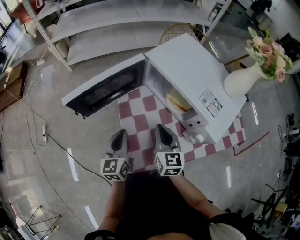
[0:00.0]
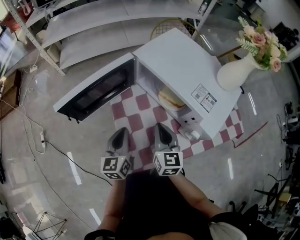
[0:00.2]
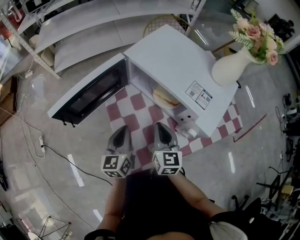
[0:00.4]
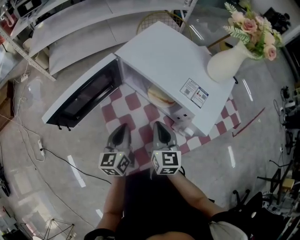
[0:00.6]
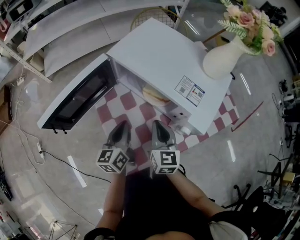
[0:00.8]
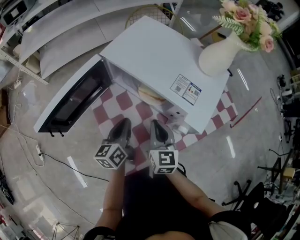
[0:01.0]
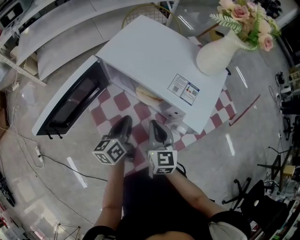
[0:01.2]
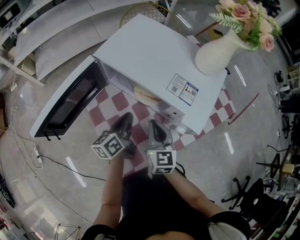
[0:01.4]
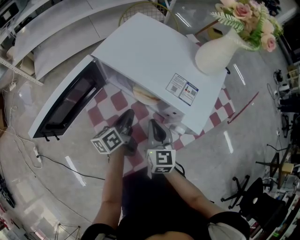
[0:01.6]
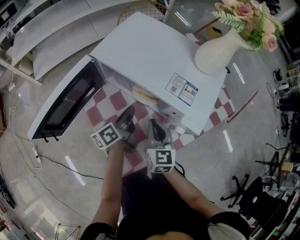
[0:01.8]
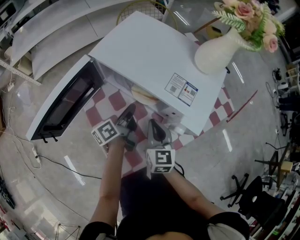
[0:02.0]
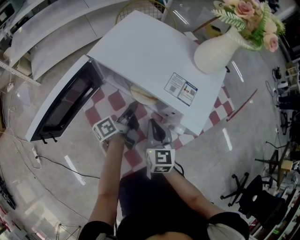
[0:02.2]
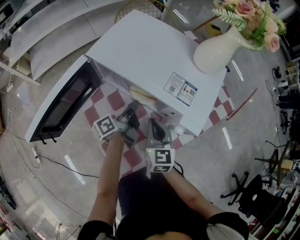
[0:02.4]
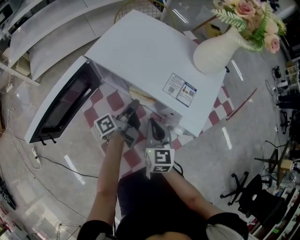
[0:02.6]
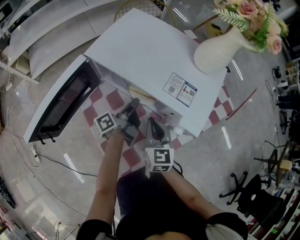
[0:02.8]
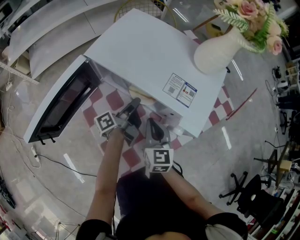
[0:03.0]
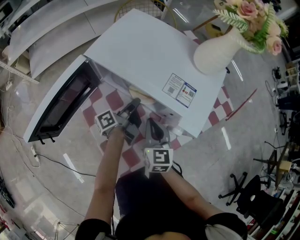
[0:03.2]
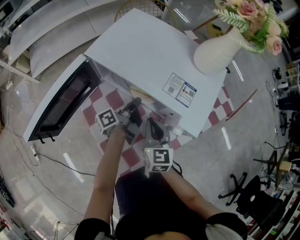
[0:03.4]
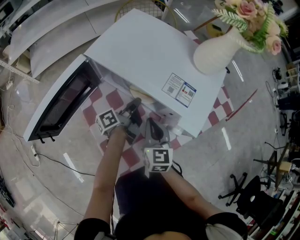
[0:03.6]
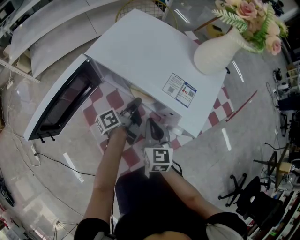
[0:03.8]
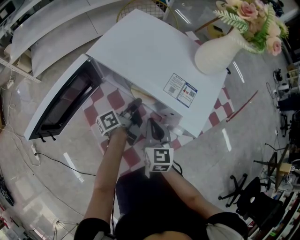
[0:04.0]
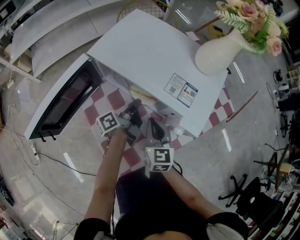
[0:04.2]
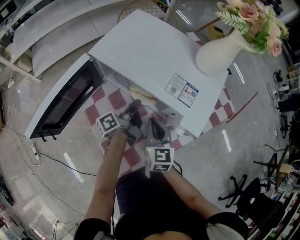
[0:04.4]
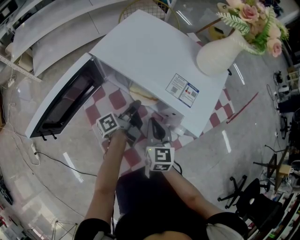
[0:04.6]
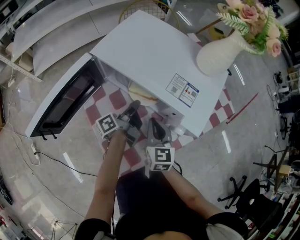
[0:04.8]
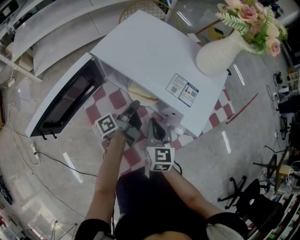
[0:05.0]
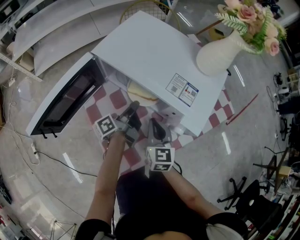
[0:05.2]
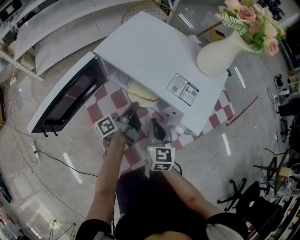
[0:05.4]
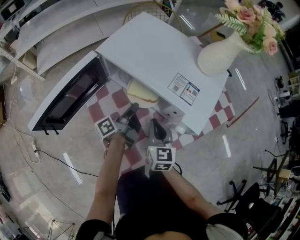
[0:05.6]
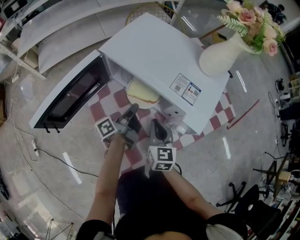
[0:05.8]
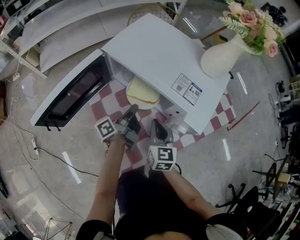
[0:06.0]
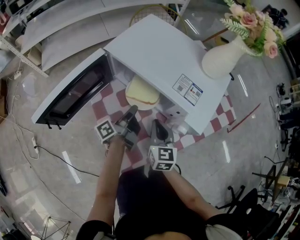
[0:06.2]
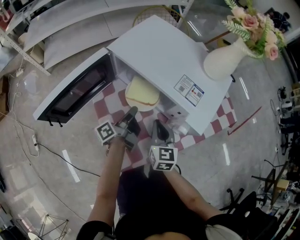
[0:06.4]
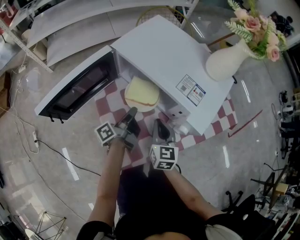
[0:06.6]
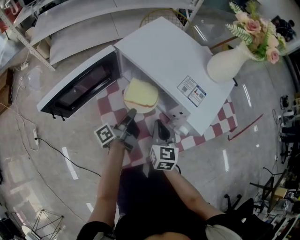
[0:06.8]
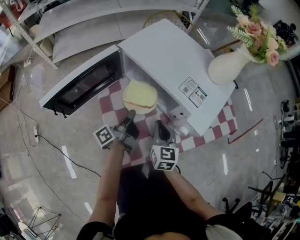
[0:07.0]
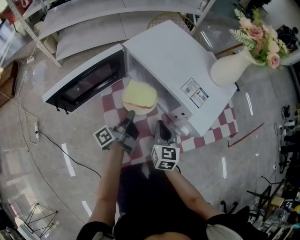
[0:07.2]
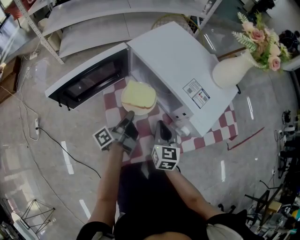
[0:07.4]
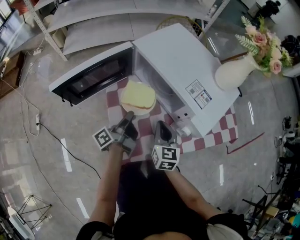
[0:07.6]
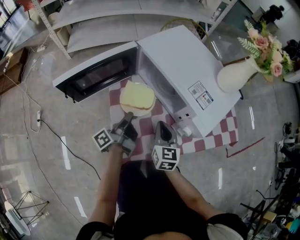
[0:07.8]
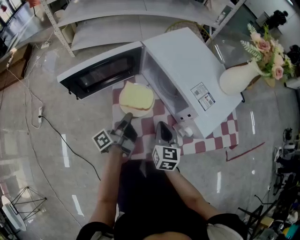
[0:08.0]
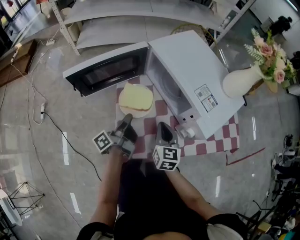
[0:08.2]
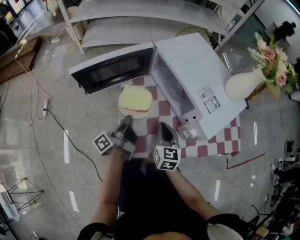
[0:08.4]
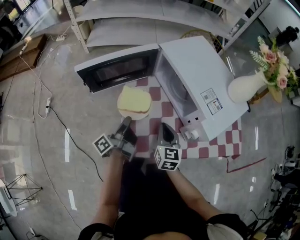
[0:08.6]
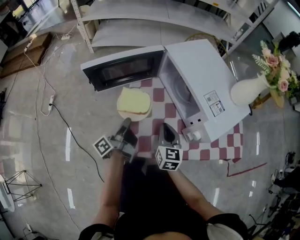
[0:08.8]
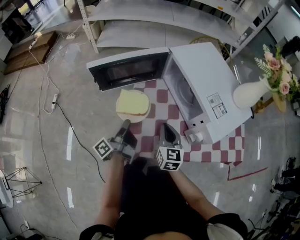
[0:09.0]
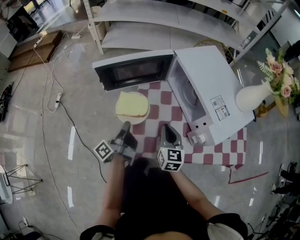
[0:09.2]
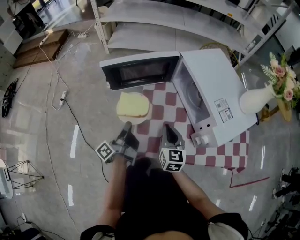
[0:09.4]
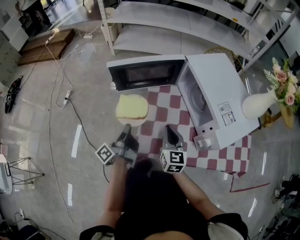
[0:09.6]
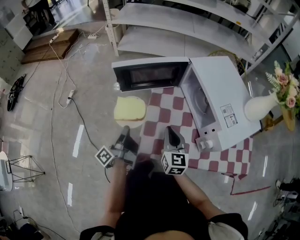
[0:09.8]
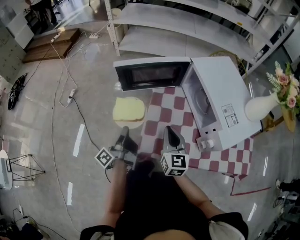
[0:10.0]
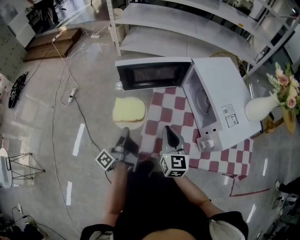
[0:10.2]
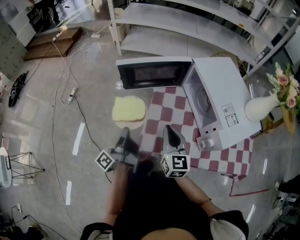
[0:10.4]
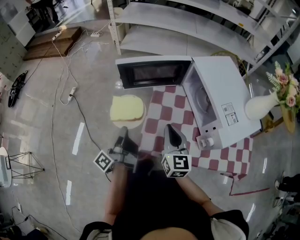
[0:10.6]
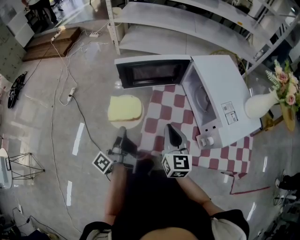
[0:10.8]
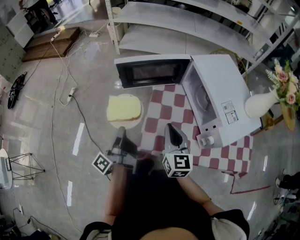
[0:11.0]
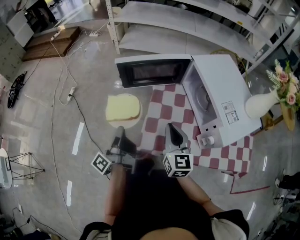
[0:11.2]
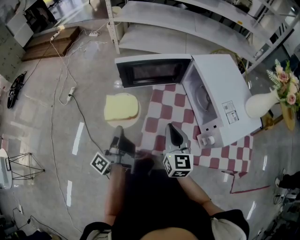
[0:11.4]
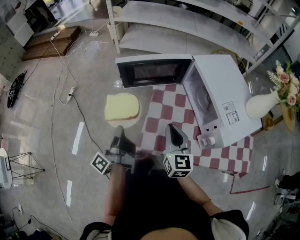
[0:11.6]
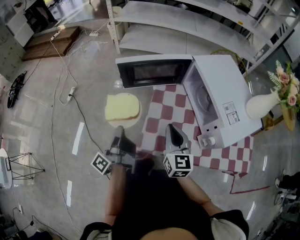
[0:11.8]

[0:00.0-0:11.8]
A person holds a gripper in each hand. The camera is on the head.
0:00.0 to 0:01.4: The left gripper heads to the right and forward, covering some 15 cm, and turns by some 40 degrees. Meanwhile the right gripper shifts some 10 cm to the right.
0:01.4 to 0:03.0: The left gripper is displaced forward by roughly 5 cm, twists about 40 degrees counterclockwise, seen from behind, and opens up.
0:03.0 to 0:06.0: The grippers make only small movements.
0:06.0 to 0:07.4: The left gripper heads backward and to the left, covering approximately 10 cm.
0:07.4 to 0:08.8: The left gripper heads to the left and backward, covering roughly 15 cm, and changes its angle by about 20 degrees, while the right gripper moves to the left, about 5 cm.
0:08.8 to 0:10.4: The right gripper goes about 10 cm to the left and upward; the left gripper shifts some 15 cm to the left, backward and upward, and rotates about 20 degrees.
0:10.4 to 0:11.8: There are only small adjustments of the grippers.

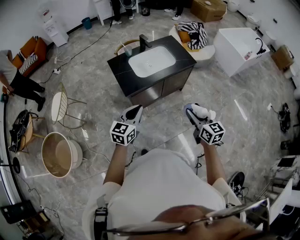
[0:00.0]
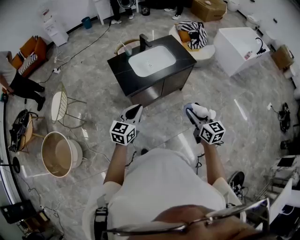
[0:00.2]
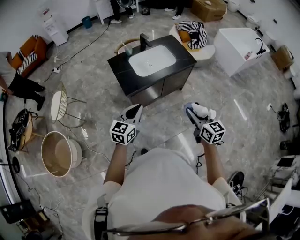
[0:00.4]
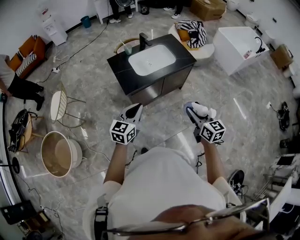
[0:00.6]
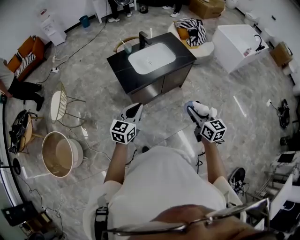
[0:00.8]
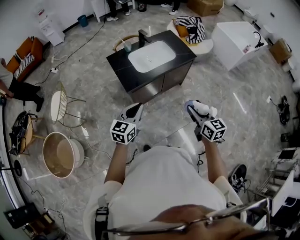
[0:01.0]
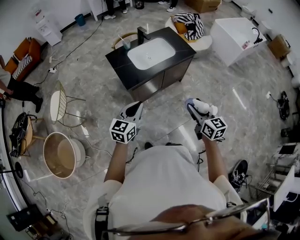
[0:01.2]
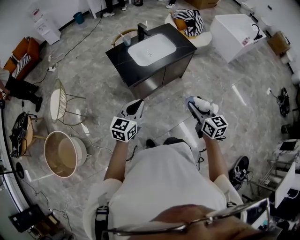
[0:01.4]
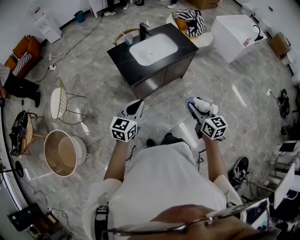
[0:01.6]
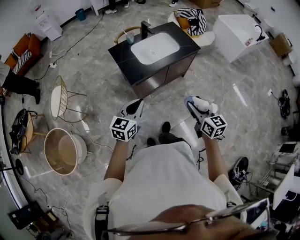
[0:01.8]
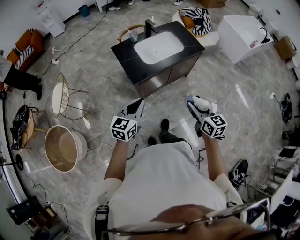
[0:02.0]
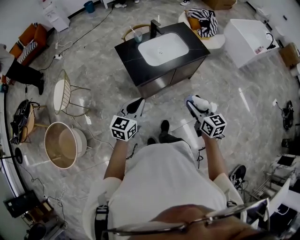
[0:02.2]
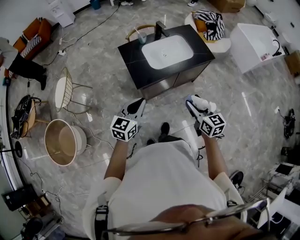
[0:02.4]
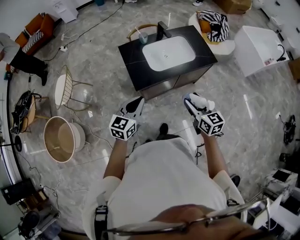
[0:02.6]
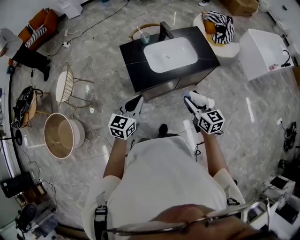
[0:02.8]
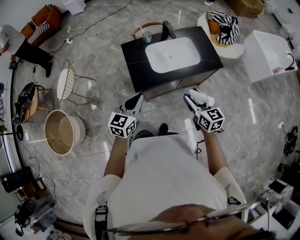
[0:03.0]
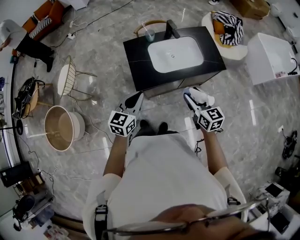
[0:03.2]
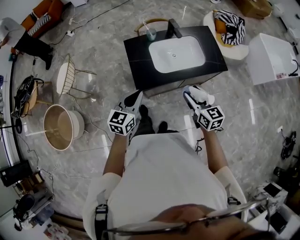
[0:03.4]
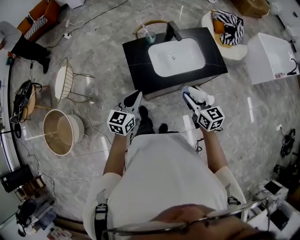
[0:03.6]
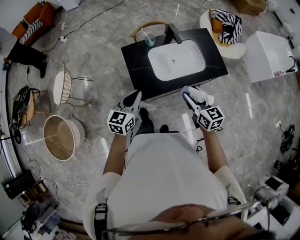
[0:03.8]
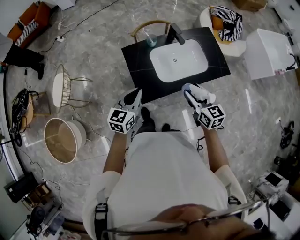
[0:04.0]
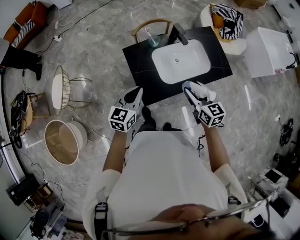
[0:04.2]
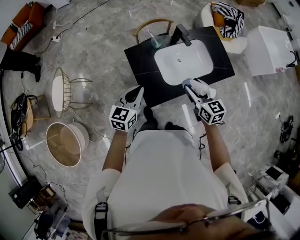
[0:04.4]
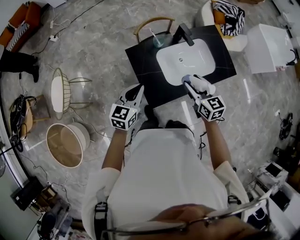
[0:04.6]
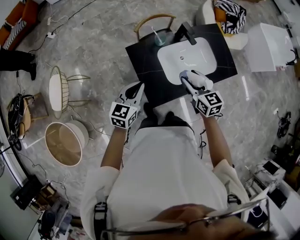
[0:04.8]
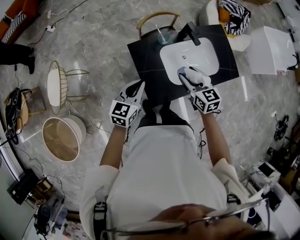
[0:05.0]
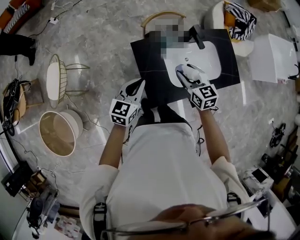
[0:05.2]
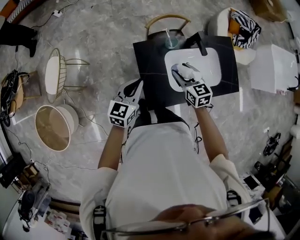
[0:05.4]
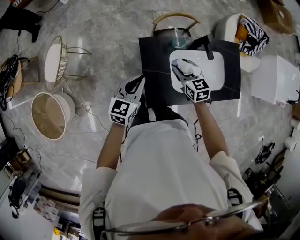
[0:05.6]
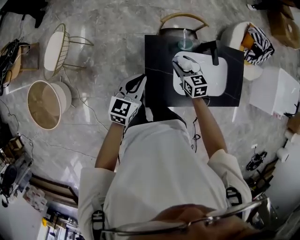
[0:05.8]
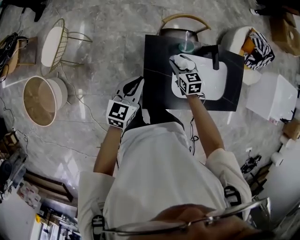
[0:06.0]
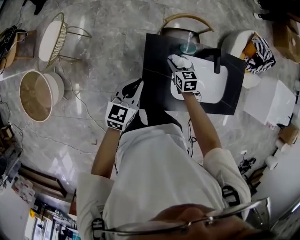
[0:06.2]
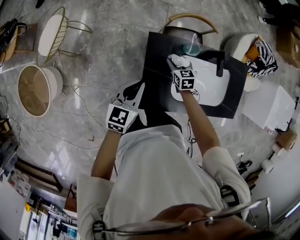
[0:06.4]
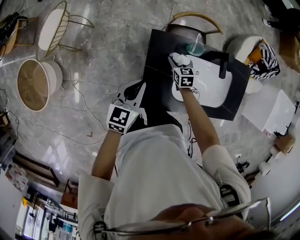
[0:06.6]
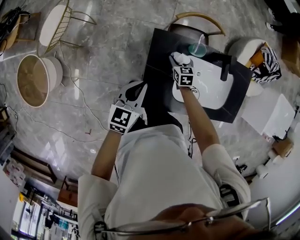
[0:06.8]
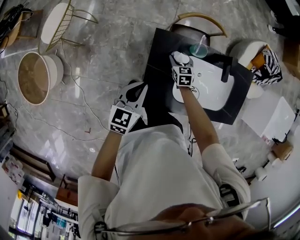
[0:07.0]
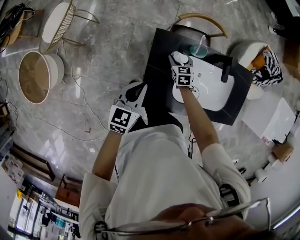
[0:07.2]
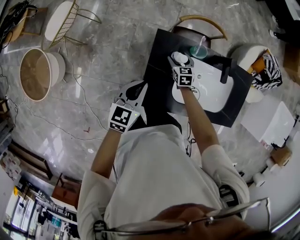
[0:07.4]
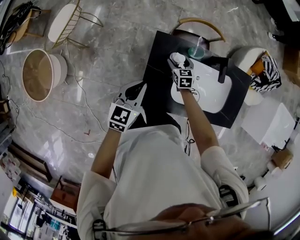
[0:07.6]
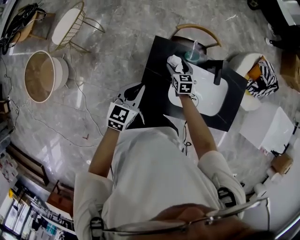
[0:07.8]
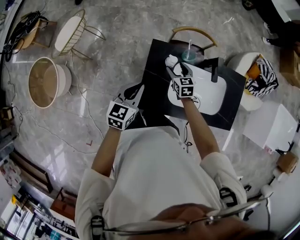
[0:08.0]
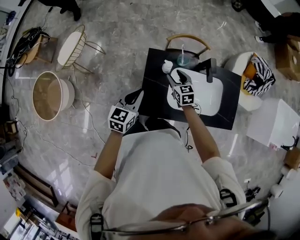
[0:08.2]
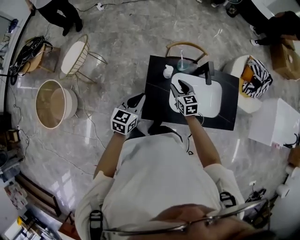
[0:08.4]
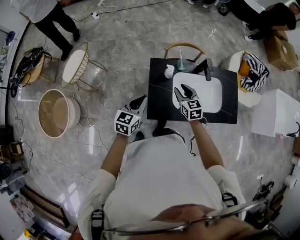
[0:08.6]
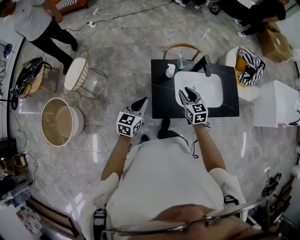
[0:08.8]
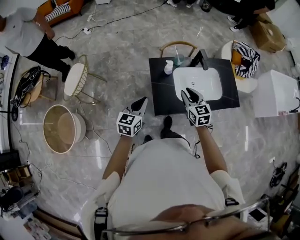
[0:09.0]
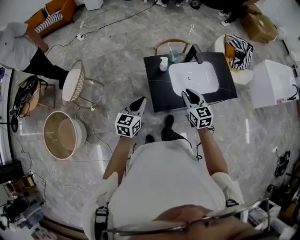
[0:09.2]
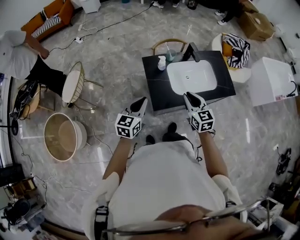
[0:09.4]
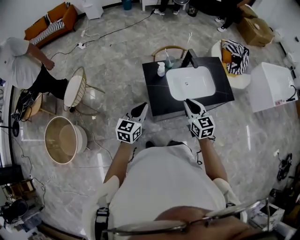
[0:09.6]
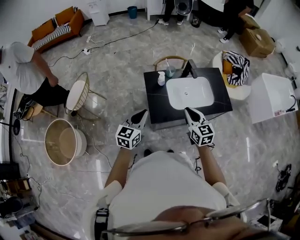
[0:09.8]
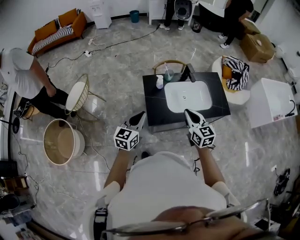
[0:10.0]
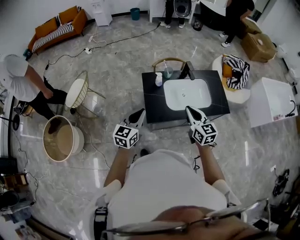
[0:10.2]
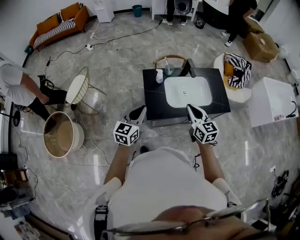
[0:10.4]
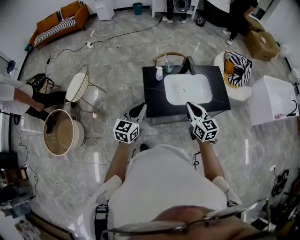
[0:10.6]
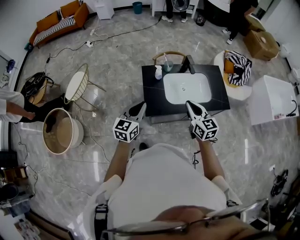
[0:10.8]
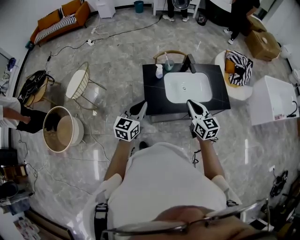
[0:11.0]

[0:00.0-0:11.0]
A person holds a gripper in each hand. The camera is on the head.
0:00.0 to 0:01.6: The grippers both shift to the left by some 5 cm.
0:01.6 to 0:03.2: The grippers both shift forward by about 25 cm. The right gripper rotates some 20 degrees.
0:03.2 to 0:04.8: The two grippers go about 25 cm forward and to the left.
0:04.8 to 0:06.2: The right gripper goes about 30 cm downward, forward and to the left, and turns by approximately 20 degrees, while the left gripper travels downward by some 5 cm, and rotates some 20 degrees.
0:06.2 to 0:07.8: The right gripper moves about 10 cm downward and comes back.
0:07.8 to 0:09.4: The right gripper moves backward and upward, some 40 cm, swivels approximately 30 degrees, and closes; the left gripper shifts some 20 cm backward and upward.
0:09.4 to 0:11.0: The left gripper shifts some 5 cm to the right. Meanwhile the right gripper heads to the right and upward, covering about 10 cm.

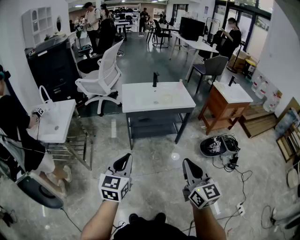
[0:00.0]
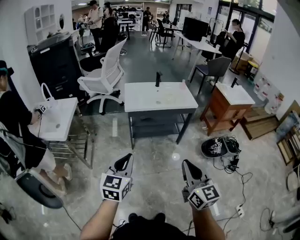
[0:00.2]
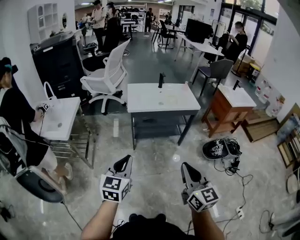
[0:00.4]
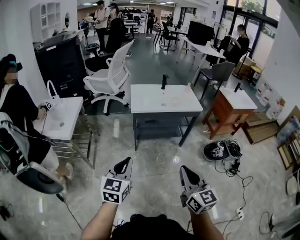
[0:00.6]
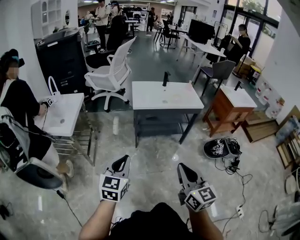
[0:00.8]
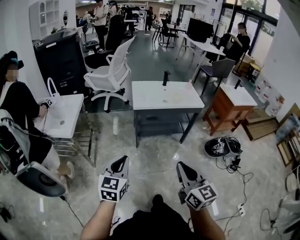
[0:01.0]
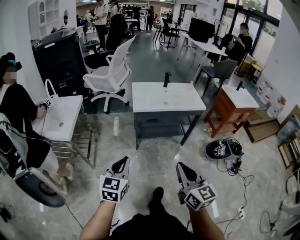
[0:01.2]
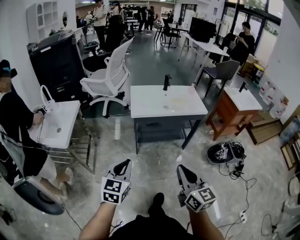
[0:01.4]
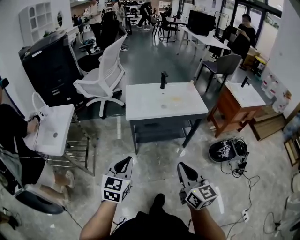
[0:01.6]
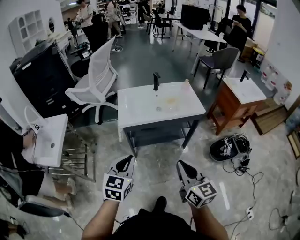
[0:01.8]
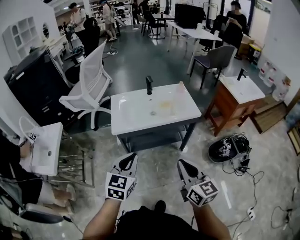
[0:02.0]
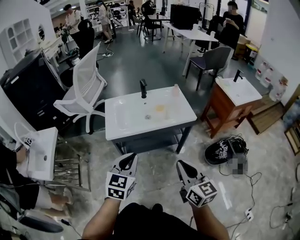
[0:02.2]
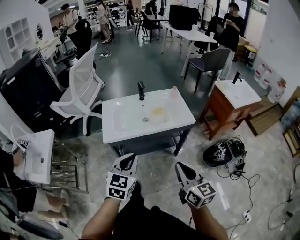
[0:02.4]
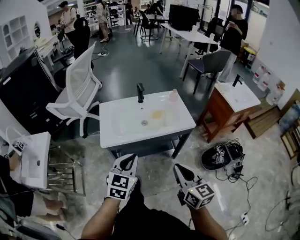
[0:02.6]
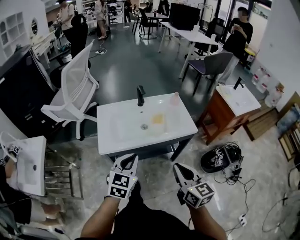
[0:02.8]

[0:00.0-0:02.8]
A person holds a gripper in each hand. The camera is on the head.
0:00.0 to 0:01.4: The right gripper moves forward and to the left, about 10 cm, while the left gripper moves forward, to the left and downward, some 10 cm.
0:01.4 to 0:02.8: The grippers both shift forward and to the right by some 40 cm.
